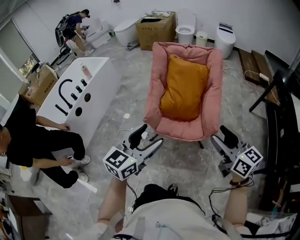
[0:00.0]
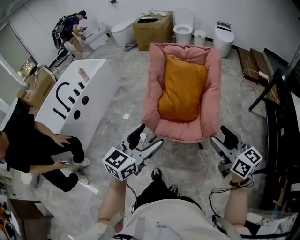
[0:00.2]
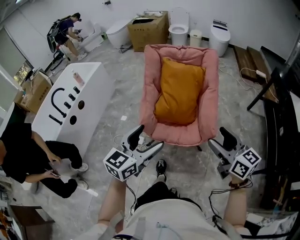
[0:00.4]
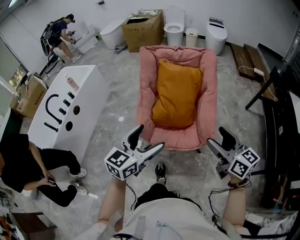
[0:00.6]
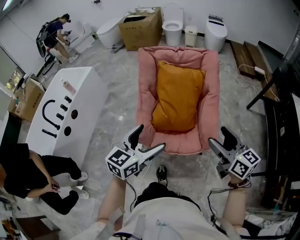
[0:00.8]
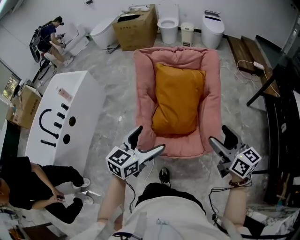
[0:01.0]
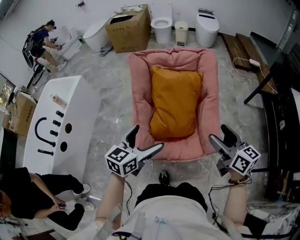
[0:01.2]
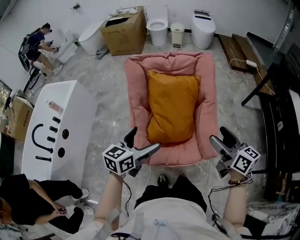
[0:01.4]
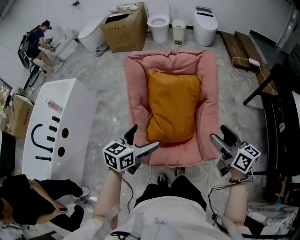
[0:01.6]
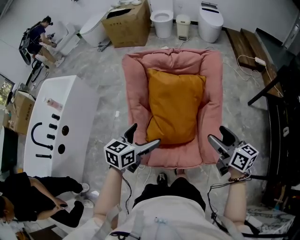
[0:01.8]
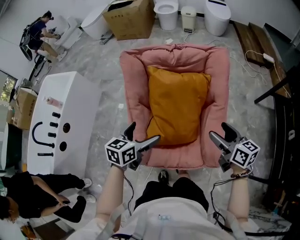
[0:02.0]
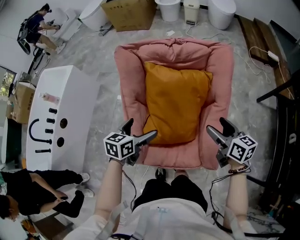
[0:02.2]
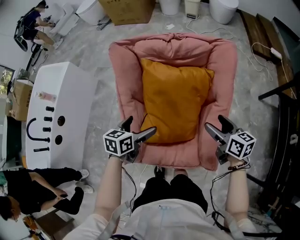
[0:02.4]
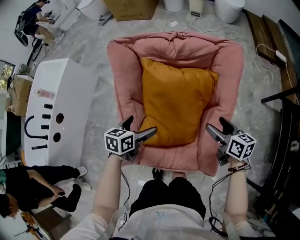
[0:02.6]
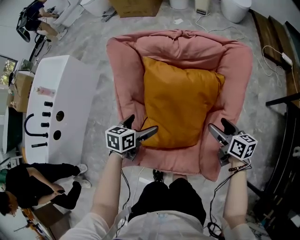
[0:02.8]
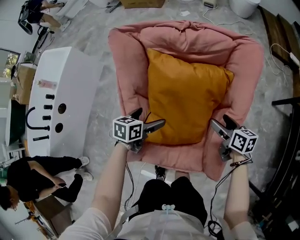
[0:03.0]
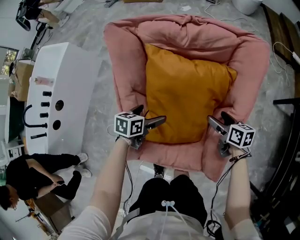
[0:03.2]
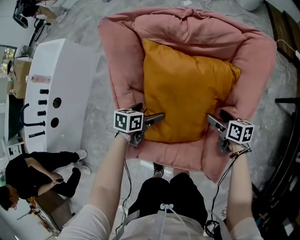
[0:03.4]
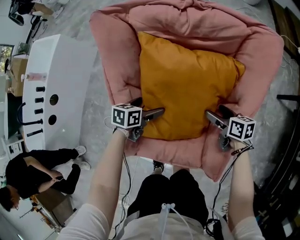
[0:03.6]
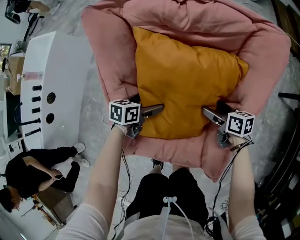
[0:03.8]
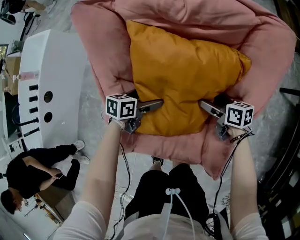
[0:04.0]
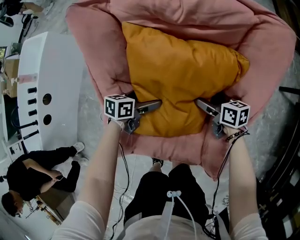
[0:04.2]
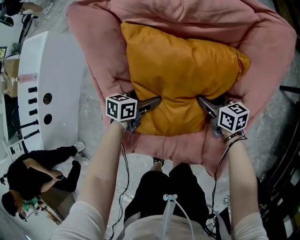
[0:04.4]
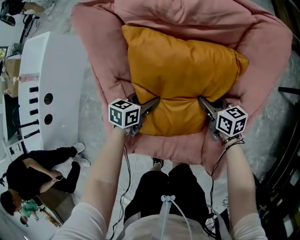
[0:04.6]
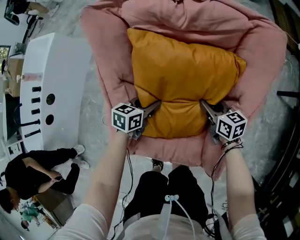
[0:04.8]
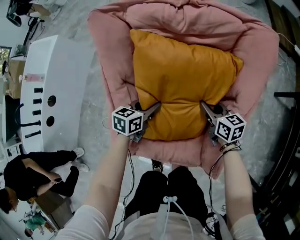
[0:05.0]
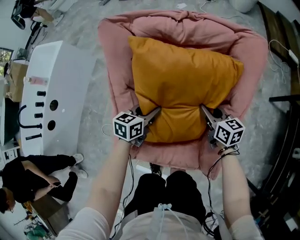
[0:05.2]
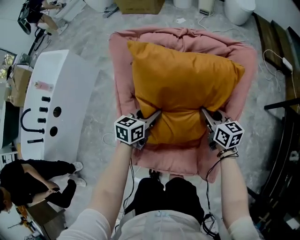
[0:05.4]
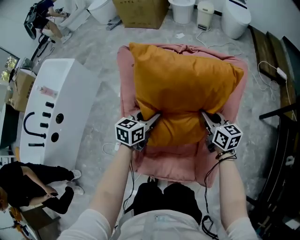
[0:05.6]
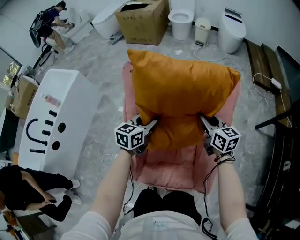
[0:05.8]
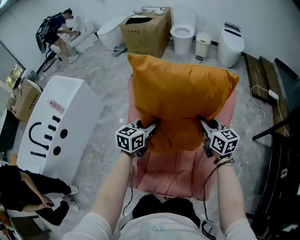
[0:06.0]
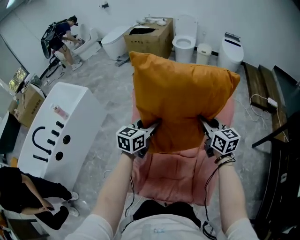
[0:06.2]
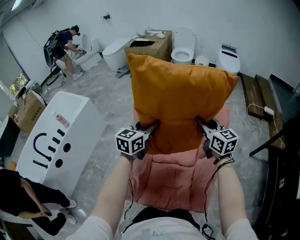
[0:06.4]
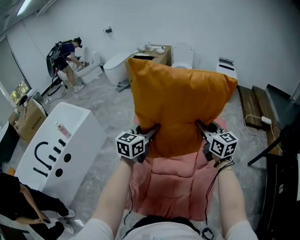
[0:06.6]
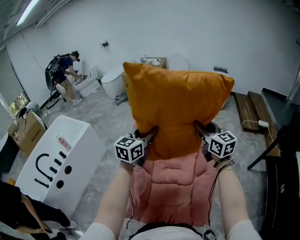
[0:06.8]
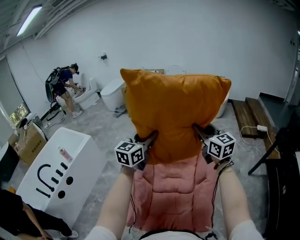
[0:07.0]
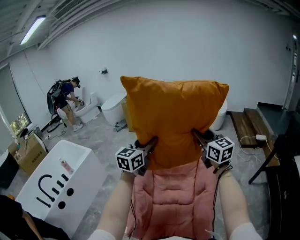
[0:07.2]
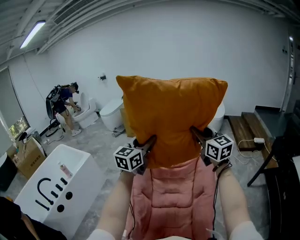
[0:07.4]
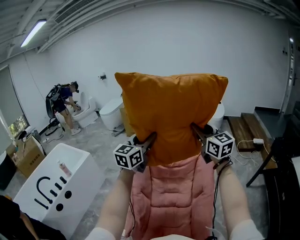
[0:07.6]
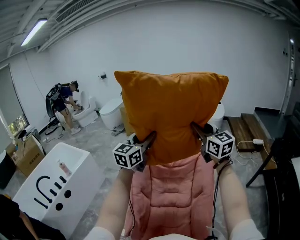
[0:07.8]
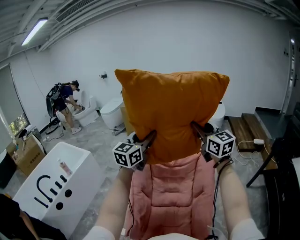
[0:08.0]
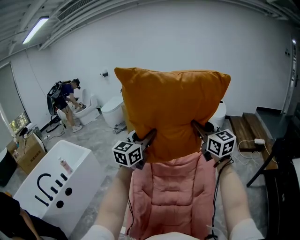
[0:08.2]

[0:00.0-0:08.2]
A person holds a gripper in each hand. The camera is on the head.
0:00.0 to 0:01.6: Both grippers move forward, some 35 cm. The left gripper turns by roughly 20 degrees, and opens, while the right gripper rotates roughly 20 degrees.
0:01.6 to 0:03.2: The two grippers go roughly 40 cm downward and forward. The right gripper turns by about 30 degrees. The left gripper rotates roughly 30 degrees.
0:03.2 to 0:05.0: The left gripper reaches some 10 cm downward, then returns, and closes its fingers. The right gripper is displaced to the left by approximately 5 cm, reaches roughly 10 cm downward, then returns, and closes up.
0:05.0 to 0:06.6: The grippers both shift upward by roughly 40 cm. The right gripper swivels approximately 40 degrees, while the left gripper tilts its fingers some 30 degrees upward.
0:06.6 to 0:08.2: Both grippers move upward, roughly 20 cm.

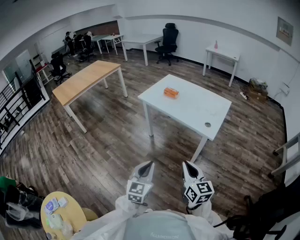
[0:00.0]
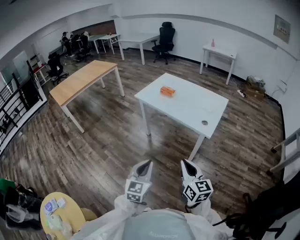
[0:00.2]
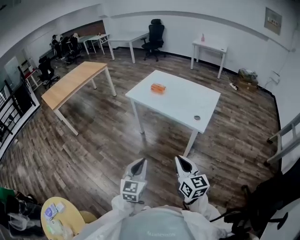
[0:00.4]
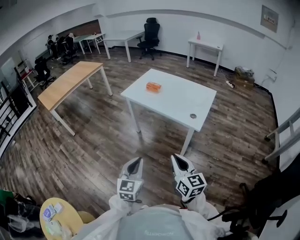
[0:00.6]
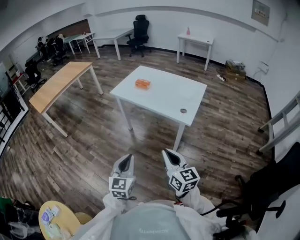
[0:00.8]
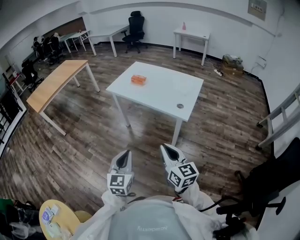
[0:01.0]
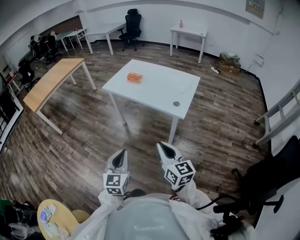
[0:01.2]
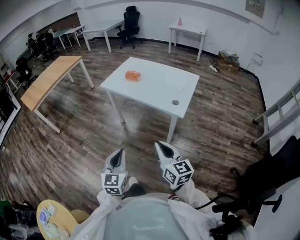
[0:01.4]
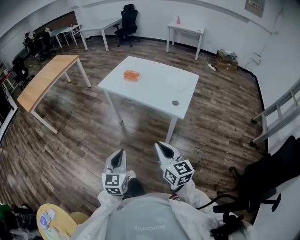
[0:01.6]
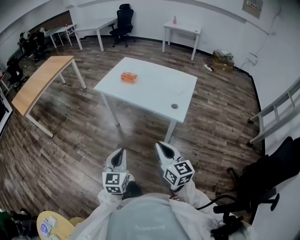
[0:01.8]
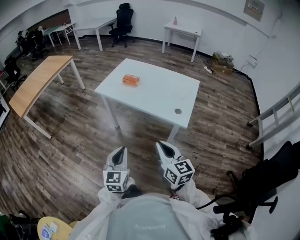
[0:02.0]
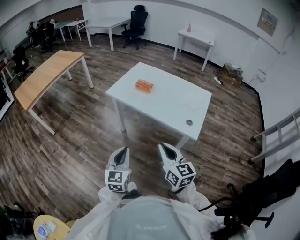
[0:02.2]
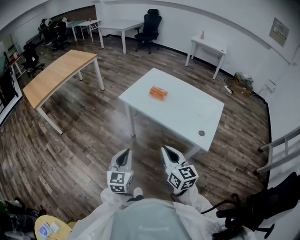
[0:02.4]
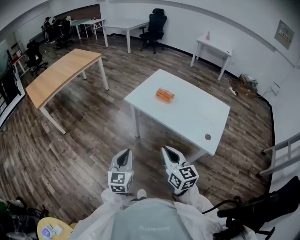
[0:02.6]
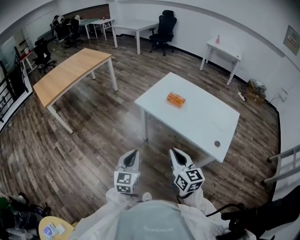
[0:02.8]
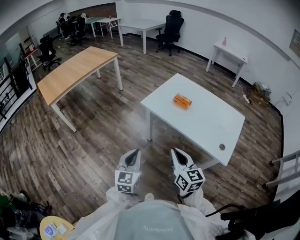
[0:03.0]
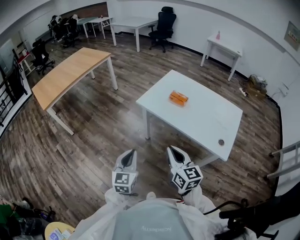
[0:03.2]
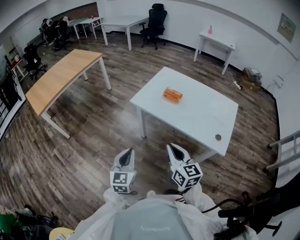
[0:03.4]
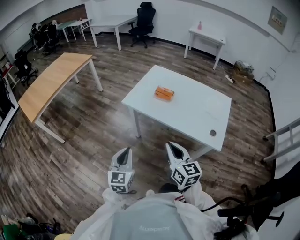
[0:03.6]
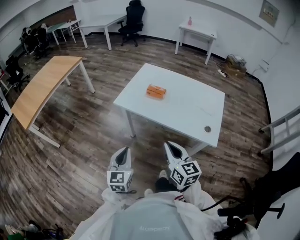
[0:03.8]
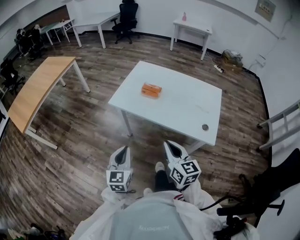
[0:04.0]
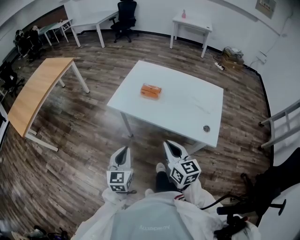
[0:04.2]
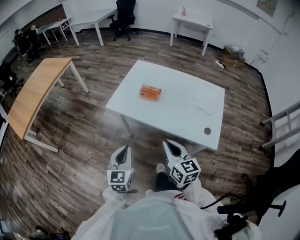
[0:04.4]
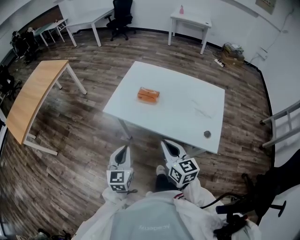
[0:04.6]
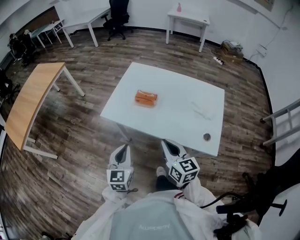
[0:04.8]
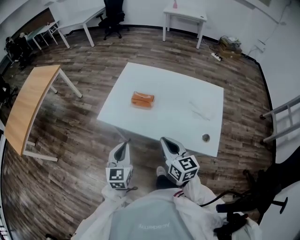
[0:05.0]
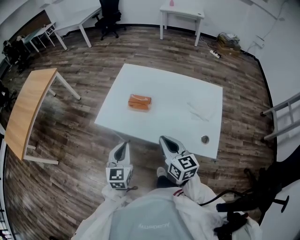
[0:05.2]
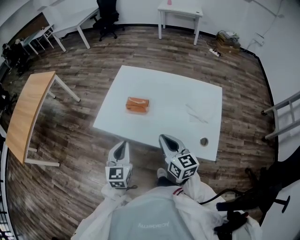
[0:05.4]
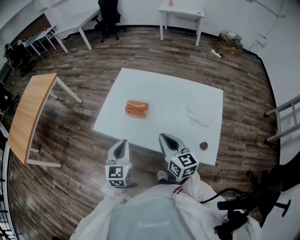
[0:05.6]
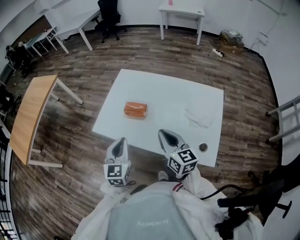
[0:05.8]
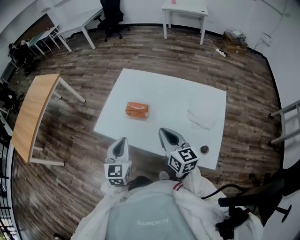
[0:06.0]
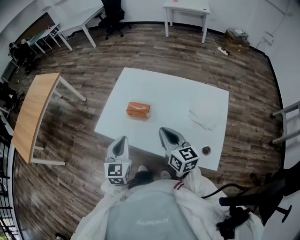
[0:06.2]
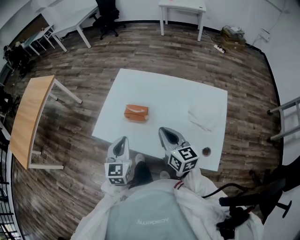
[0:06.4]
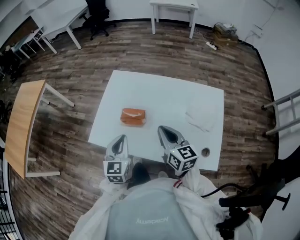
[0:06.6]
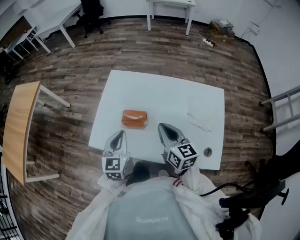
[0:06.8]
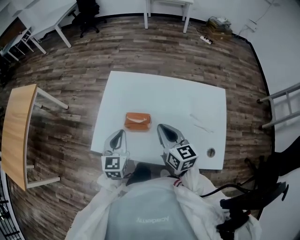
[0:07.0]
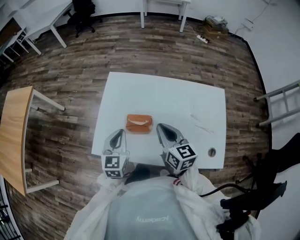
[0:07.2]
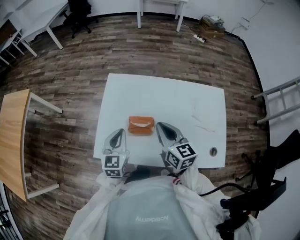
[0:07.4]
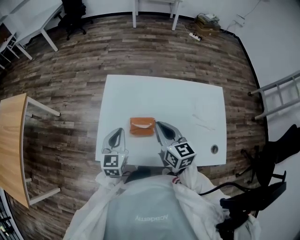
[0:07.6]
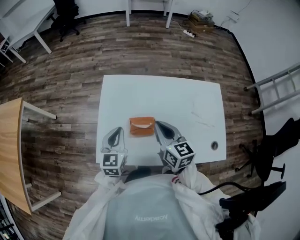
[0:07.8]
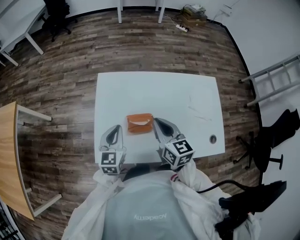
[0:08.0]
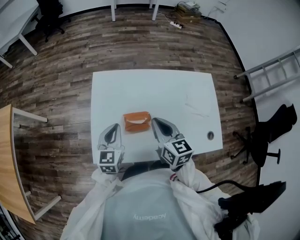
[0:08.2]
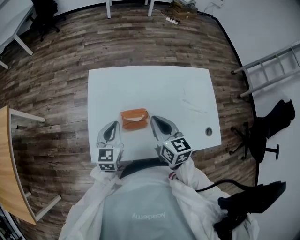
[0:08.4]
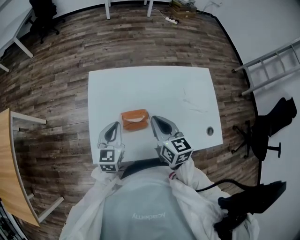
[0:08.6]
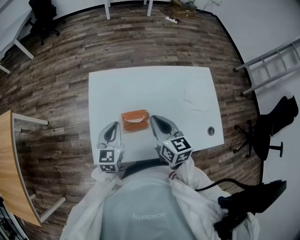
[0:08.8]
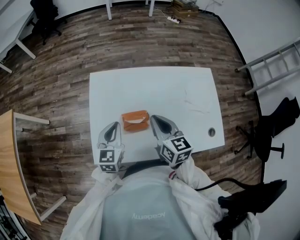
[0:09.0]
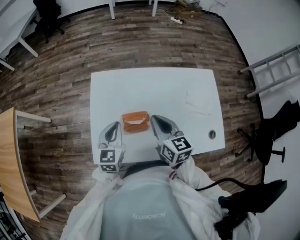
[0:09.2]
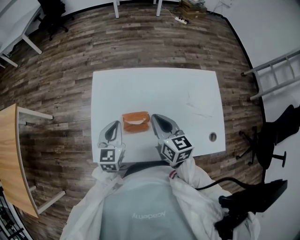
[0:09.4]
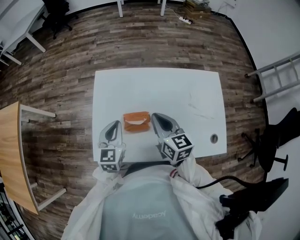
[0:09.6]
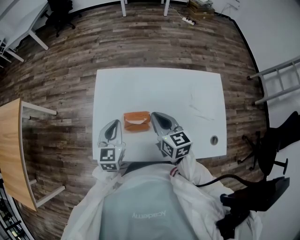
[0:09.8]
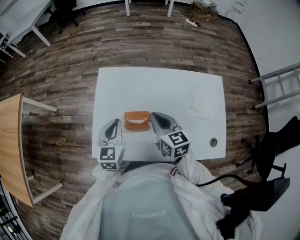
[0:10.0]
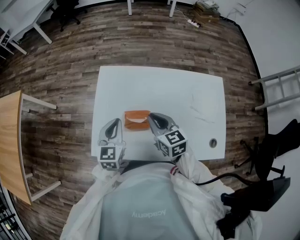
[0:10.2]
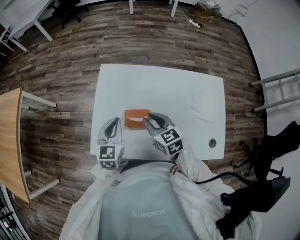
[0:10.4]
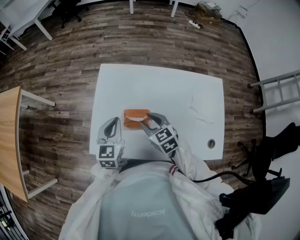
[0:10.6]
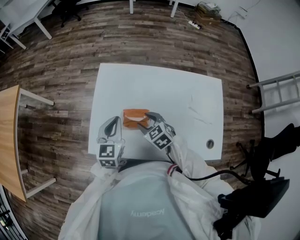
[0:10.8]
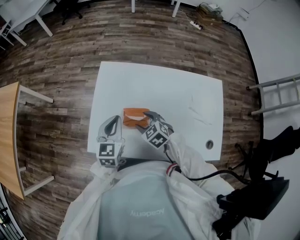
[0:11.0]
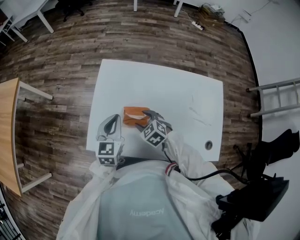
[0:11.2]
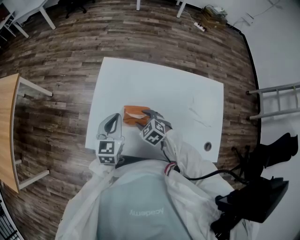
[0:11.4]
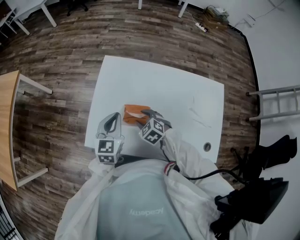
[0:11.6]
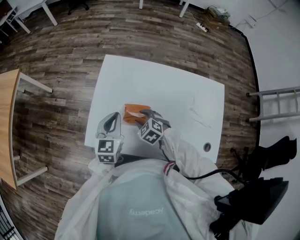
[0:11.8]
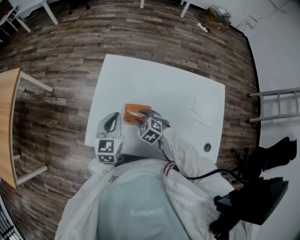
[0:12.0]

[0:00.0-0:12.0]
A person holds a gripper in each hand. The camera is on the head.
0:00.0 to 0:01.6: The grippers move only a little.
0:01.6 to 0:03.0: The two grippers go about 25 cm forward and to the left.
0:03.0 to 0:04.4: The right gripper goes some 10 cm to the right and forward. Meanwhile the left gripper moves forward and to the right, about 10 cm.
0:04.4 to 0:06.0: Both grippers move forward and to the right, some 20 cm.
0:06.0 to 0:07.6: The left gripper is displaced forward by some 20 cm; the right gripper goes approximately 15 cm forward and to the left.
0:07.6 to 0:09.0: The grippers move only a little.
0:09.0 to 0:10.4: The right gripper travels downward by roughly 5 cm, and swivels some 30 degrees.
0:10.4 to 0:12.0: The right gripper heads downward, covering about 10 cm, changes its angle by about 40 degrees, and opens, then closes once more.

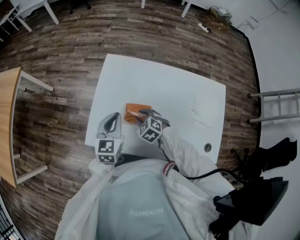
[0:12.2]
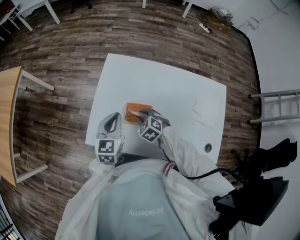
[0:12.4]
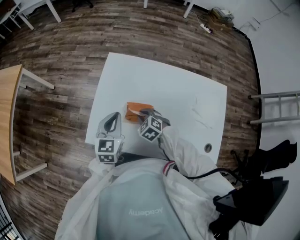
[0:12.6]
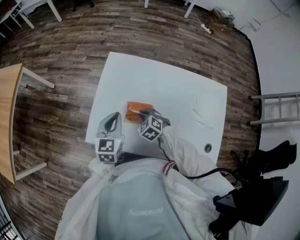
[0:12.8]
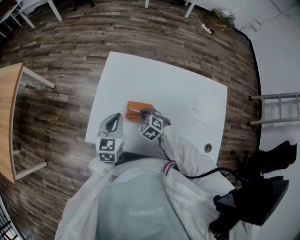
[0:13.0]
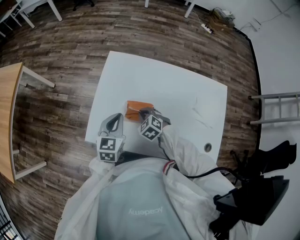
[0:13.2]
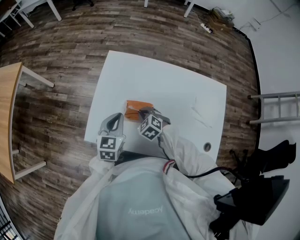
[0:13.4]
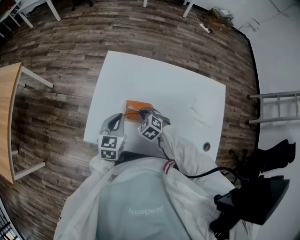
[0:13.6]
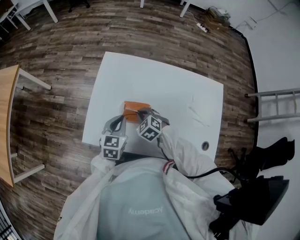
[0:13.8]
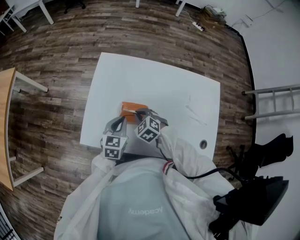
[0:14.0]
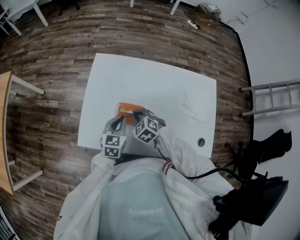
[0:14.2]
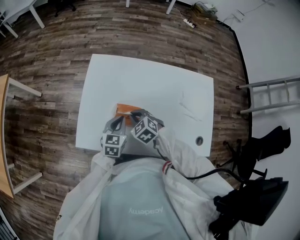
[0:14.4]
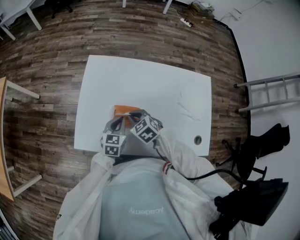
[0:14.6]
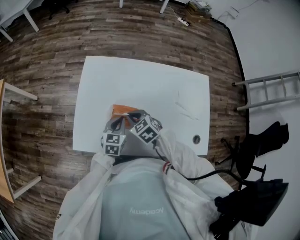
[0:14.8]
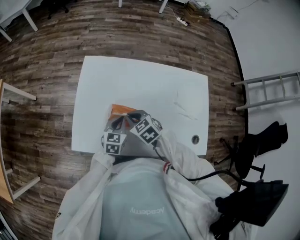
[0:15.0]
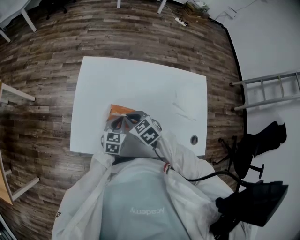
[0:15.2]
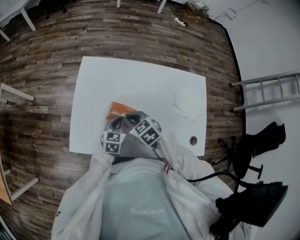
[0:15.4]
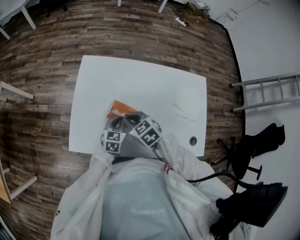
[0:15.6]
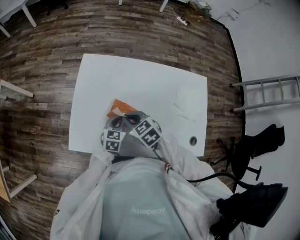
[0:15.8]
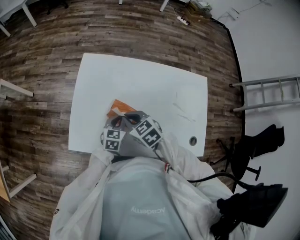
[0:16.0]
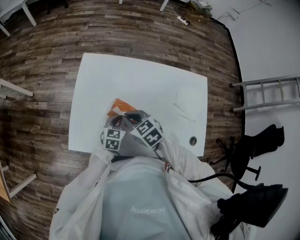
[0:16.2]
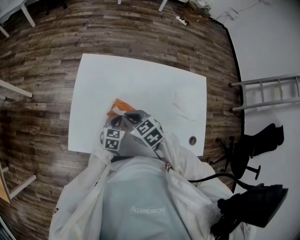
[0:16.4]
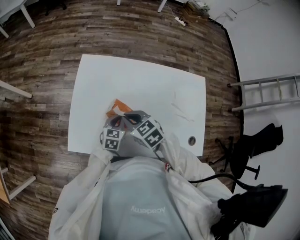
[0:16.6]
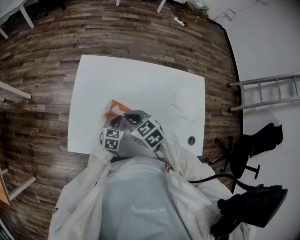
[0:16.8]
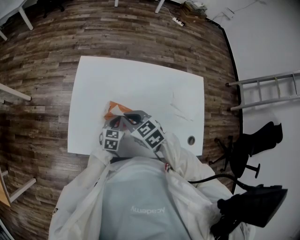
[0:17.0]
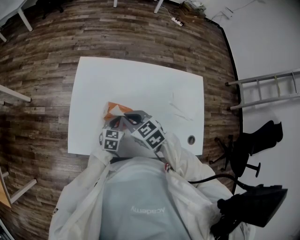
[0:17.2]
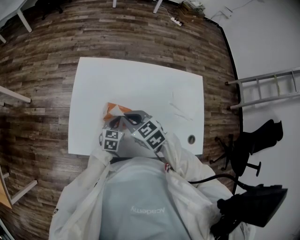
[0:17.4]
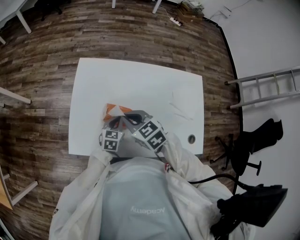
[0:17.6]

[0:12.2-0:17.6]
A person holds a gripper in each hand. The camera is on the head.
0:12.2 to 0:13.6: The right gripper closes up.
0:13.6 to 0:15.0: The right gripper shifts approximately 5 cm upward, and changes its angle by approximately 20 degrees. Meanwhile the left gripper shifts some 10 cm to the right and downward.
0:15.0 to 0:16.2: The grippers stay close to where they were, moving slightly.
0:16.2 to 0:17.6: The grippers move only a little.
